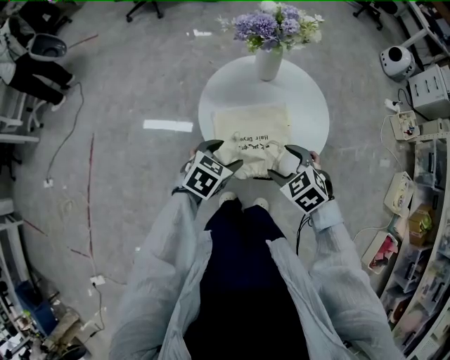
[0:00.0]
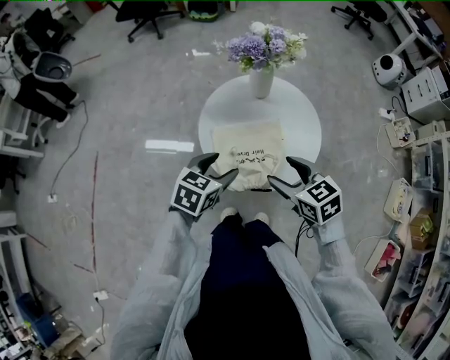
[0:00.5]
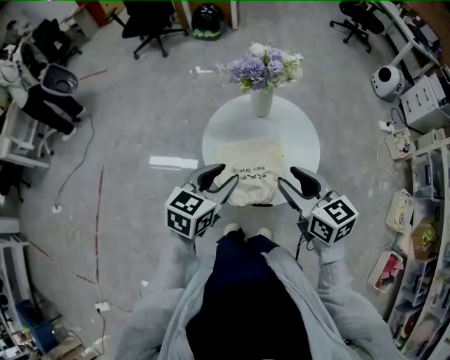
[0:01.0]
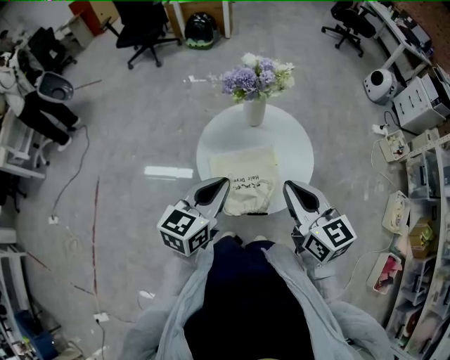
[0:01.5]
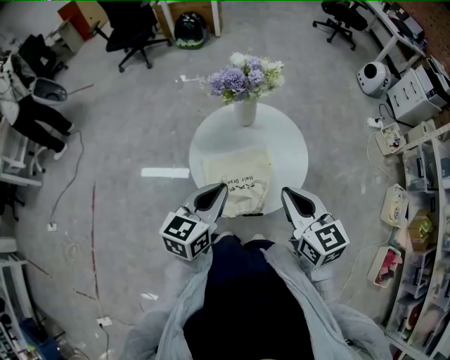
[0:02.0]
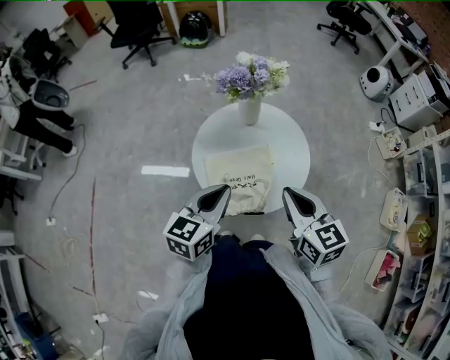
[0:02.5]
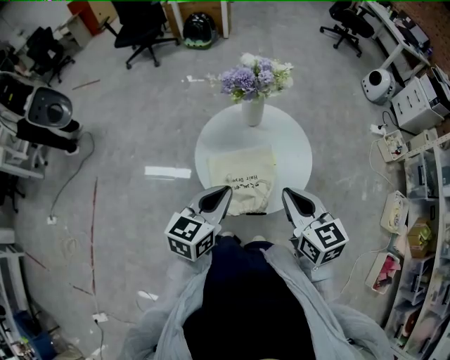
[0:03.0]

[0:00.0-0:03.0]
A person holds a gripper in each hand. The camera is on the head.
0:00.0 to 0:01.5: The grippers both shift upward by about 20 cm. The left gripper tilts its fingers some 30 degrees upward, and closes. The right gripper points its fingers roughly 40 degrees further upward, and closes its fingers.
0:01.5 to 0:03.0: There are only small adjustments of the grippers.

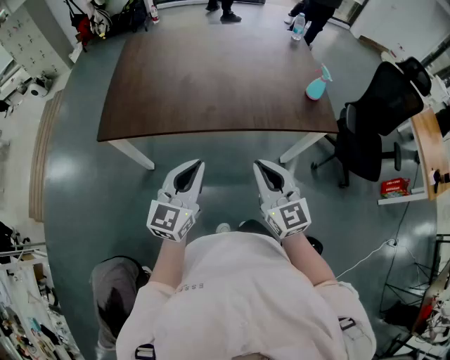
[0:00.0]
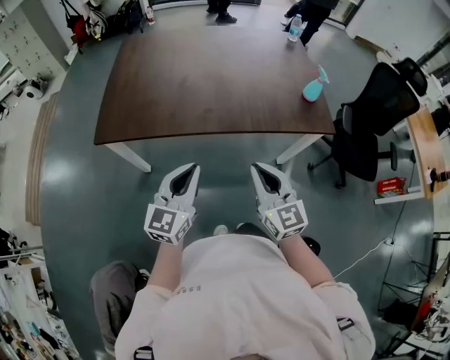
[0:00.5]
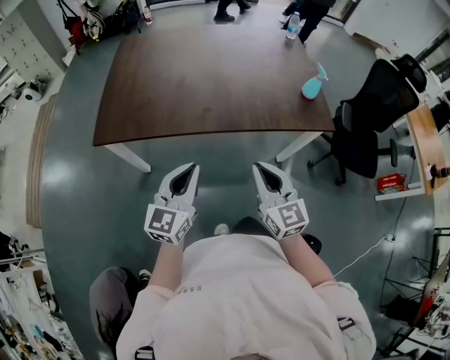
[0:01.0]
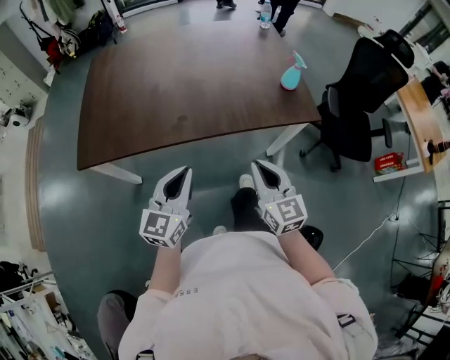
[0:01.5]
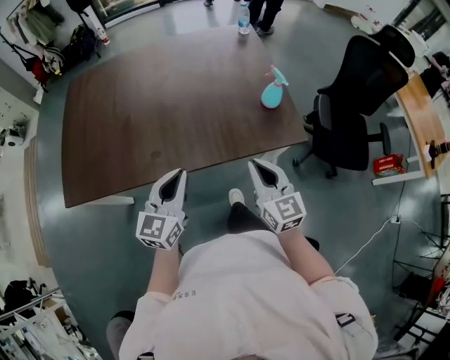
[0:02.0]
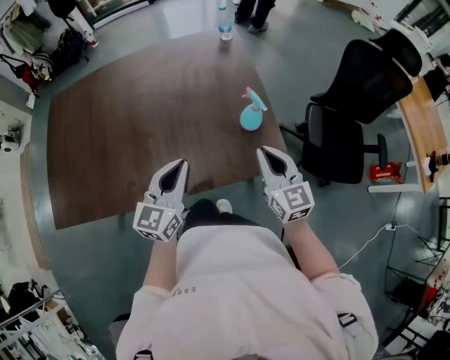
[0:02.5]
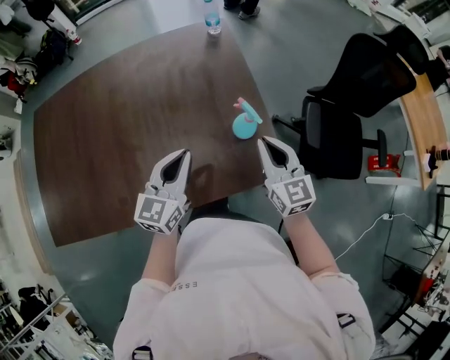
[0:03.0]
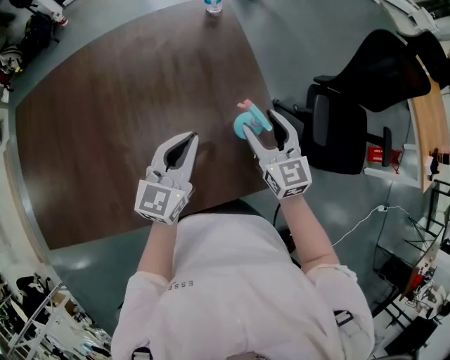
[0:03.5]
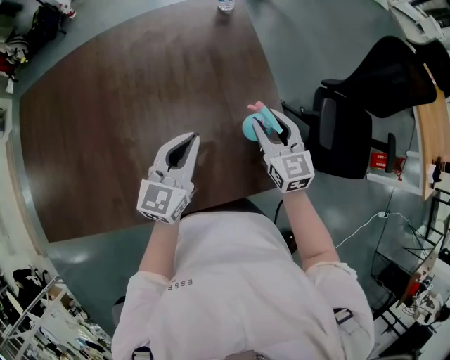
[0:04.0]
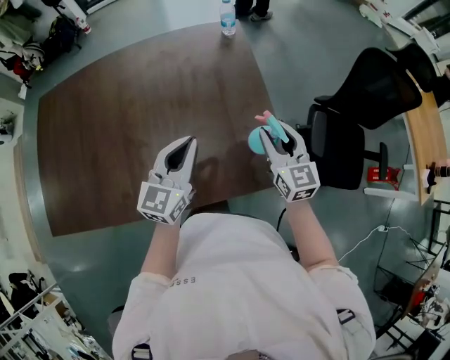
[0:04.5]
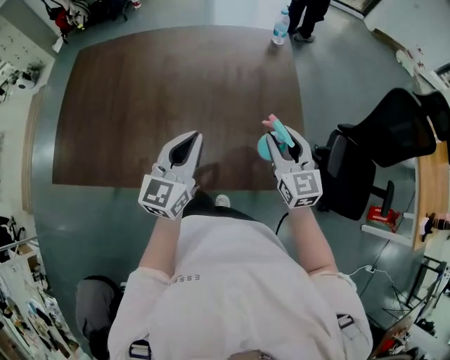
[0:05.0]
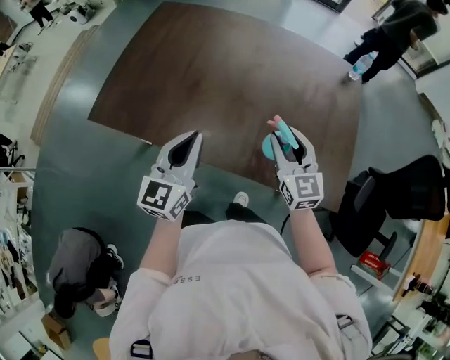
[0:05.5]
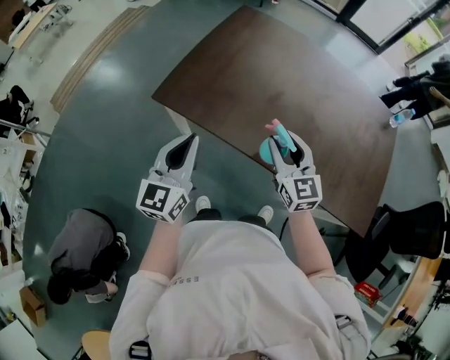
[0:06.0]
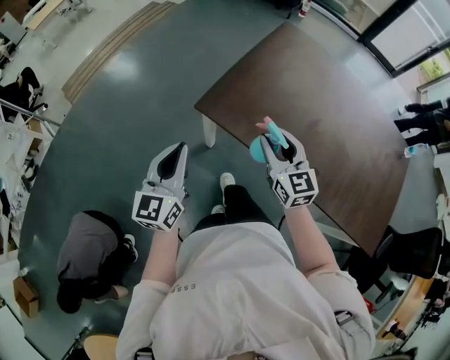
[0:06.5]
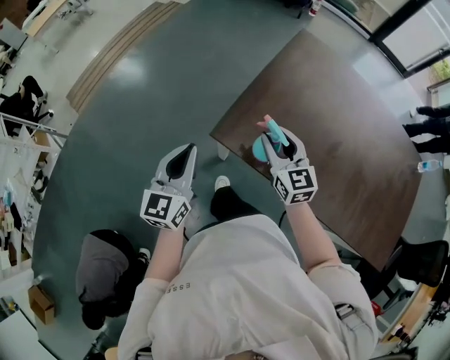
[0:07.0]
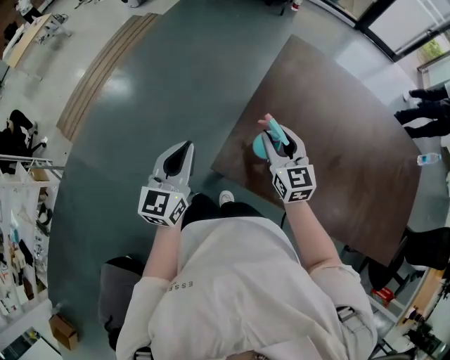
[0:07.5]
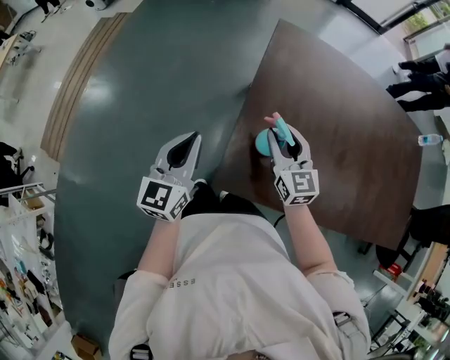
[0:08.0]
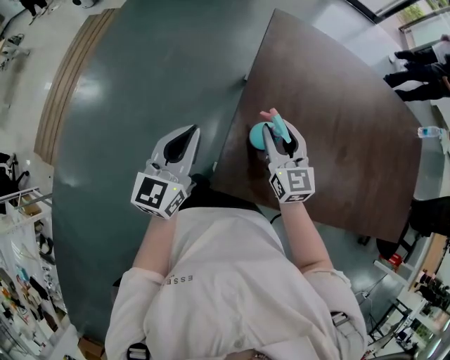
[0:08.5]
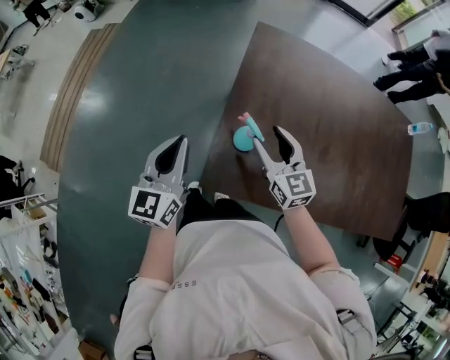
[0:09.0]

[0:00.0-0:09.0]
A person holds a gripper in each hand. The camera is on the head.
0:00.0 to 0:02.0: The right gripper goes some 25 cm to the right and forward. Meanwhile the left gripper goes roughly 20 cm forward and to the right.
0:02.0 to 0:04.5: Both grippers move forward and to the right, roughly 30 cm. The right gripper opens.
0:04.5 to 0:07.0: The pair of grippers is taken some 80 cm. The left gripper rotates some 50 degrees. Meanwhile the right gripper turns by about 50 degrees.
0:07.0 to 0:09.0: The left gripper heads forward, covering approximately 20 cm. The right gripper shifts roughly 10 cm forward, and opens up.

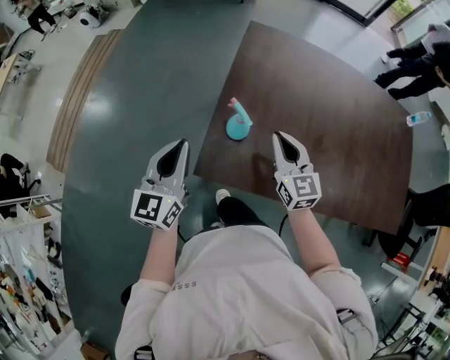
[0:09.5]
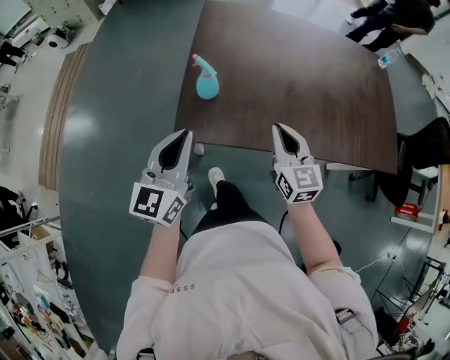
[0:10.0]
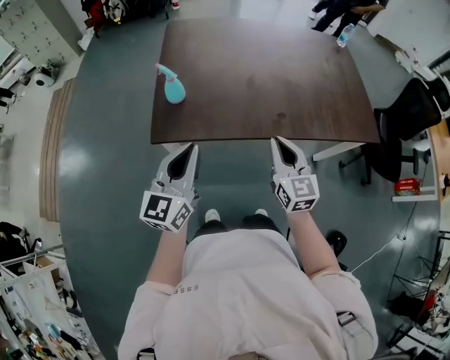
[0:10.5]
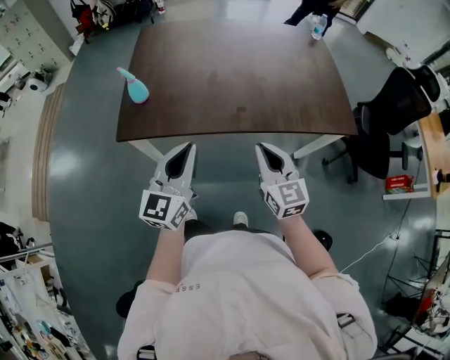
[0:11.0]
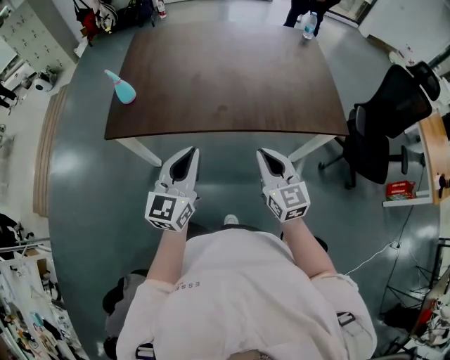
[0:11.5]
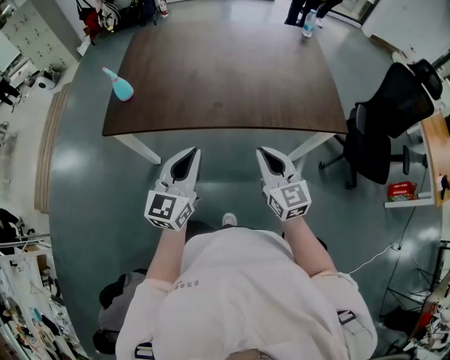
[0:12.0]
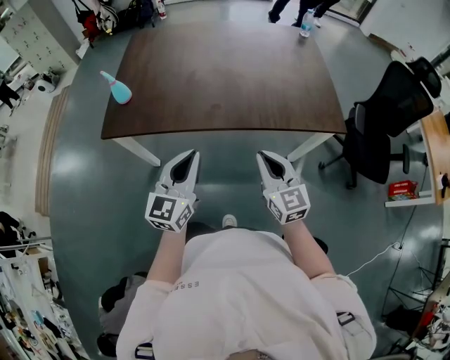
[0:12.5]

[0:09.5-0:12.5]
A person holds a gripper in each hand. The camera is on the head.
0:09.5 to 0:11.0: The two grippers travel together, to the right and backward, about 40 cm. The left gripper changes its angle by approximately 20 degrees.
0:11.0 to 0:12.5: Both grippers move to the right, approximately 10 cm.

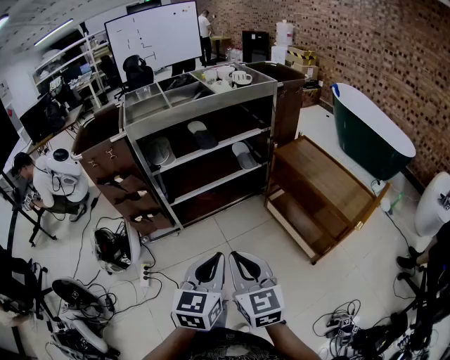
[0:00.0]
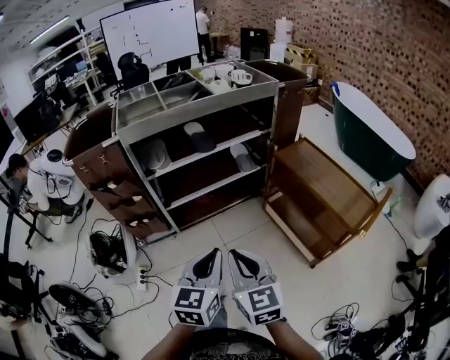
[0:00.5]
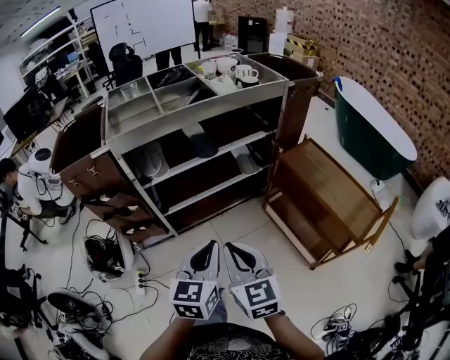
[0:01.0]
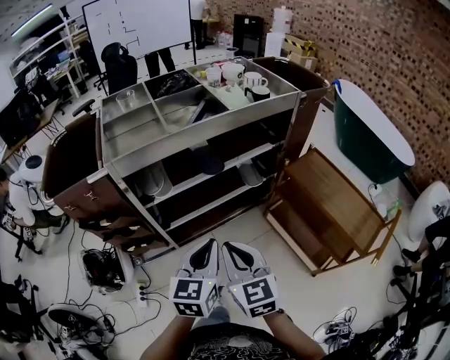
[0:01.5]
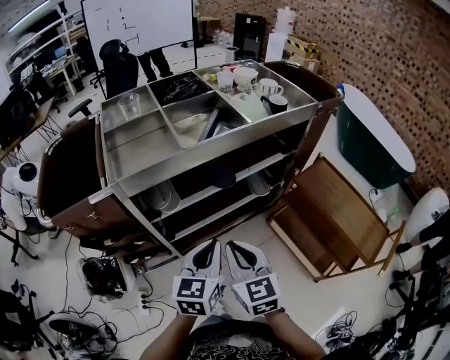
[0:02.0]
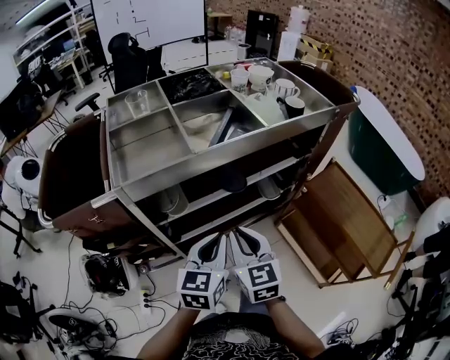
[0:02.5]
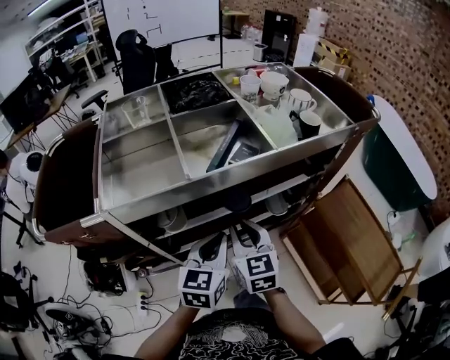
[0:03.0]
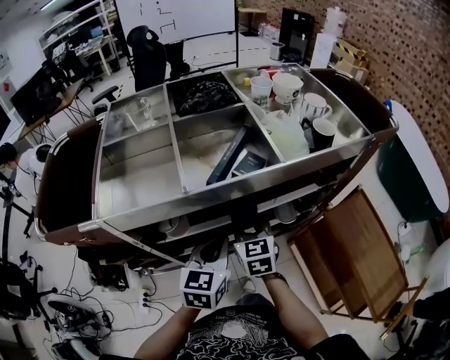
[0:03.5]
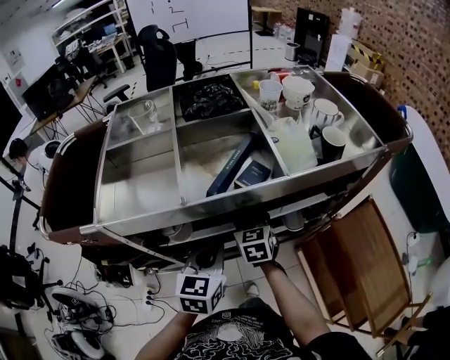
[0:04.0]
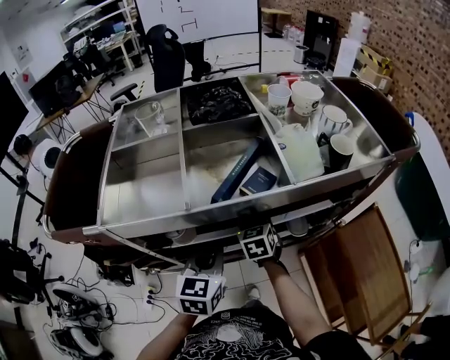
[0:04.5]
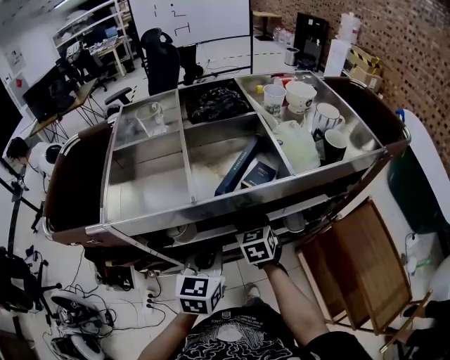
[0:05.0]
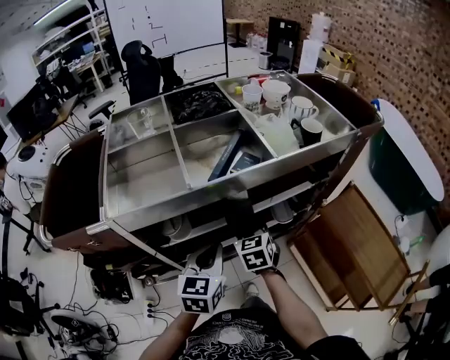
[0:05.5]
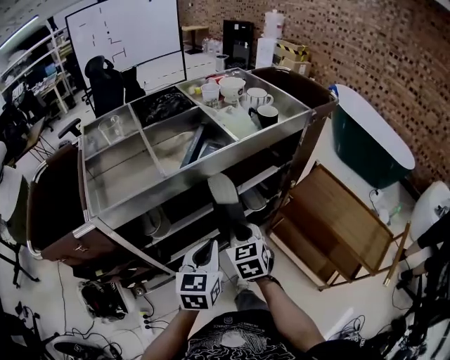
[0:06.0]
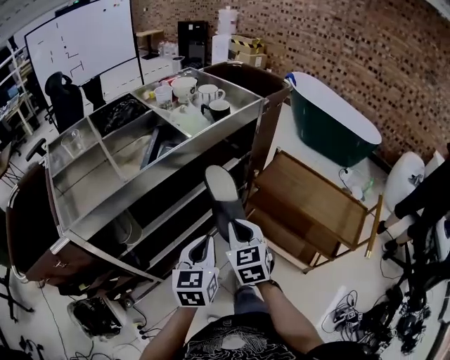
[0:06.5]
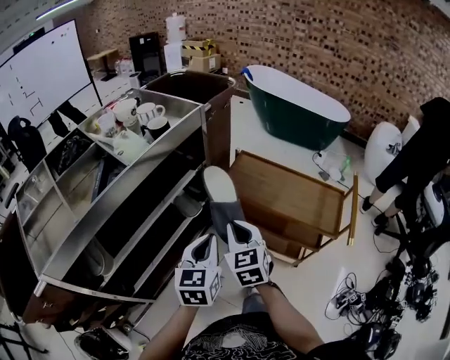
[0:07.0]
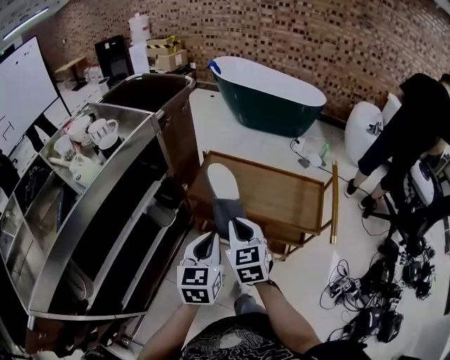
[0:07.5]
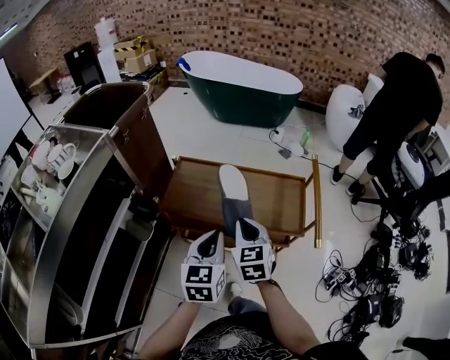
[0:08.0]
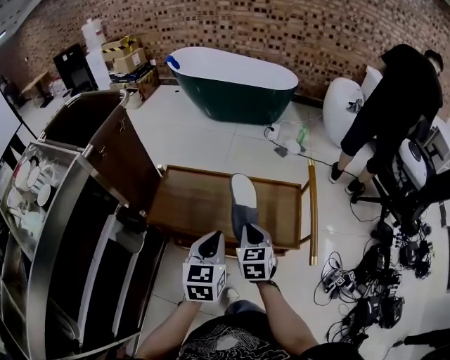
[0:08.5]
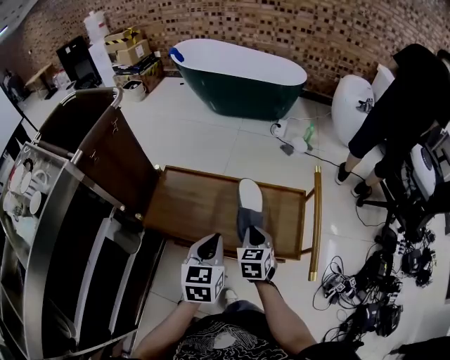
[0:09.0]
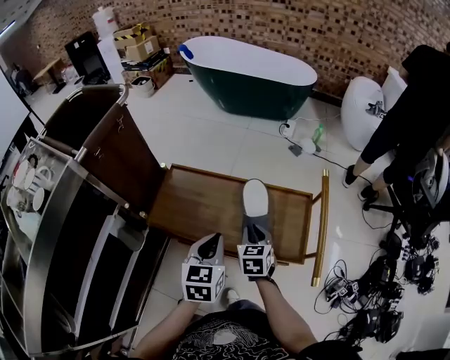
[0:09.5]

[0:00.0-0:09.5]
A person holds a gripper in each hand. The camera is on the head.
0:00.0 to 0:02.0: The grippers both shift forward by roughly 35 cm.
0:02.0 to 0:04.0: The left gripper moves forward, roughly 20 cm. Meanwhile the right gripper moves forward, approximately 30 cm, and opens its fingers.
0:04.0 to 0:05.5: The right gripper shifts roughly 5 cm backward, and closes.
0:05.5 to 0:07.5: The right gripper changes place by about 40 cm, and swivels some 50 degrees. The left gripper changes place by about 40 cm, and turns by approximately 40 degrees.
0:07.5 to 0:09.5: Both grippers move forward, to the right and downward, about 30 cm. The right gripper turns by some 30 degrees.

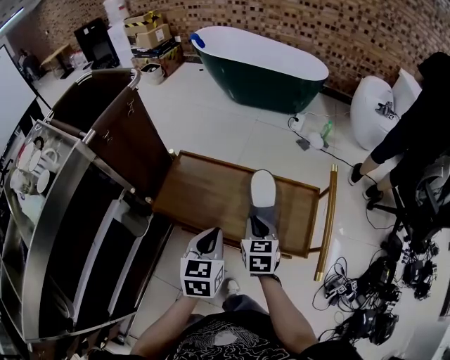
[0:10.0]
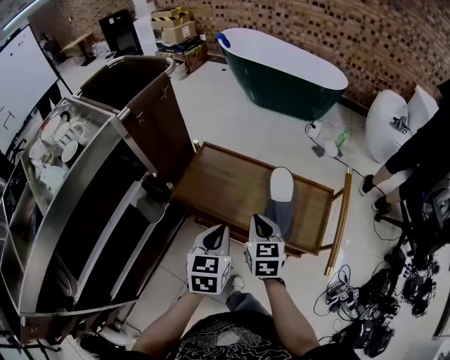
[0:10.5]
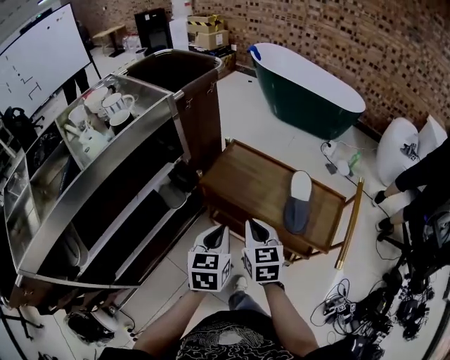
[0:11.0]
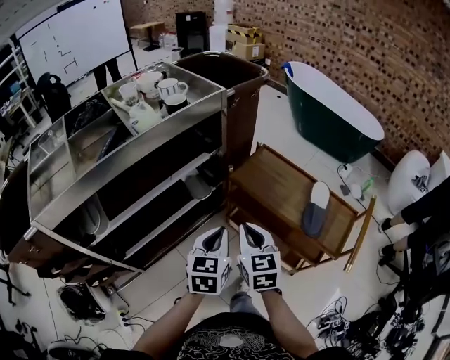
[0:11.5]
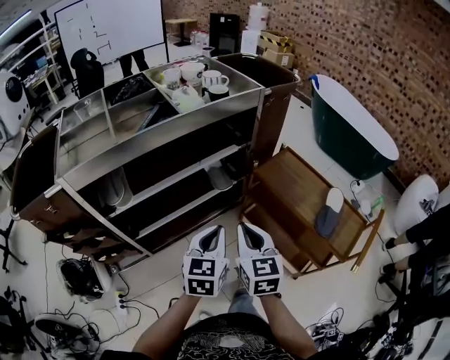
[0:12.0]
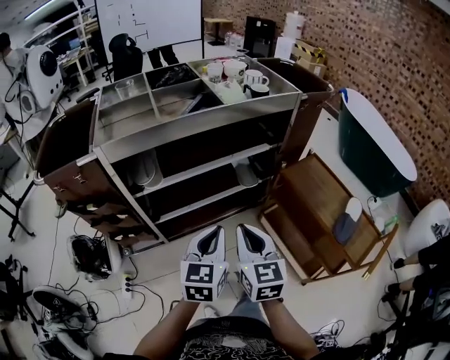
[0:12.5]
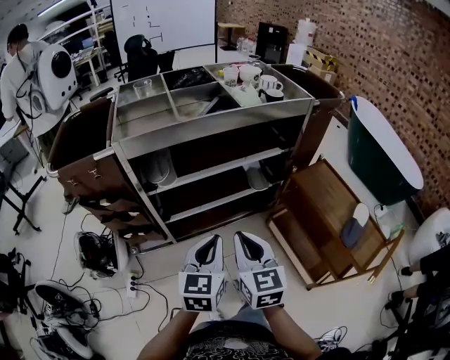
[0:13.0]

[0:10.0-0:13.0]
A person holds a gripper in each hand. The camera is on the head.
0:10.0 to 0:11.5: The right gripper ends up approximately 35 cm from where it was, and changes its angle by roughly 40 degrees, while the left gripper ends up approximately 30 cm from where it was, and swivels approximately 20 degrees.
0:11.5 to 0:13.0: Both grippers travel together to the left and backward, about 25 cm. The right gripper turns by roughly 30 degrees, while the left gripper swivels roughly 20 degrees.
